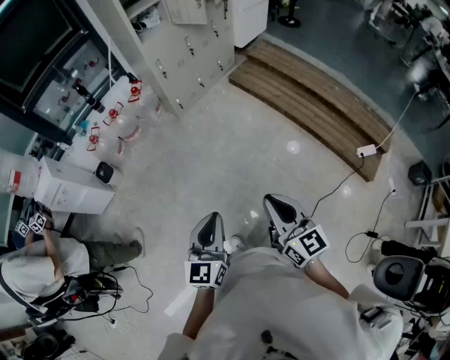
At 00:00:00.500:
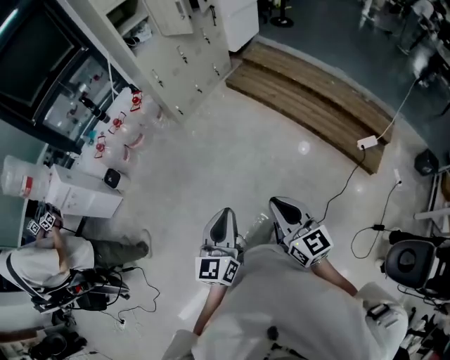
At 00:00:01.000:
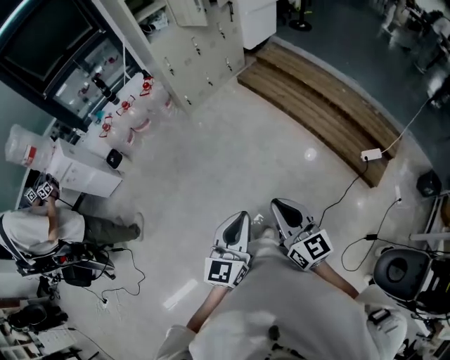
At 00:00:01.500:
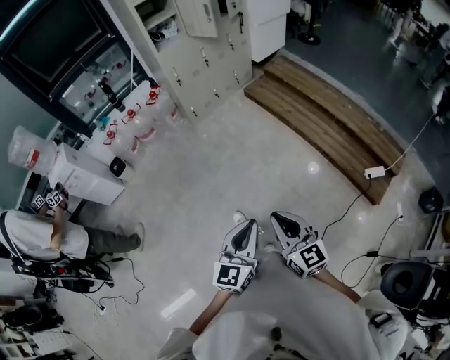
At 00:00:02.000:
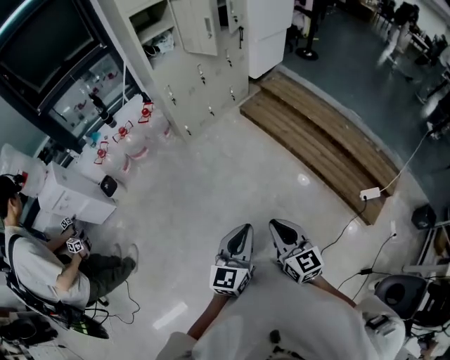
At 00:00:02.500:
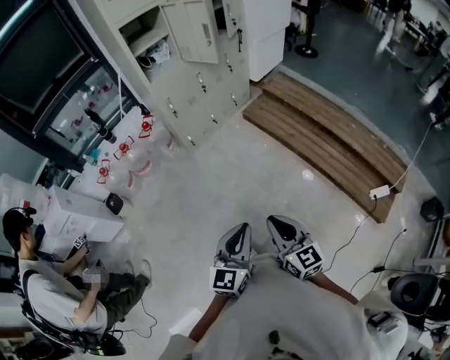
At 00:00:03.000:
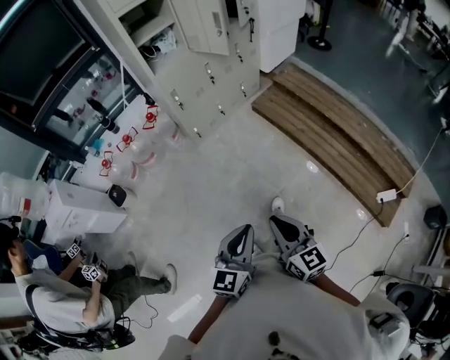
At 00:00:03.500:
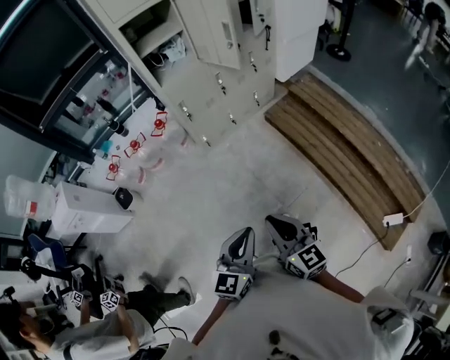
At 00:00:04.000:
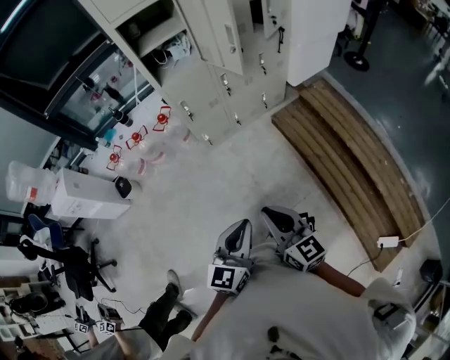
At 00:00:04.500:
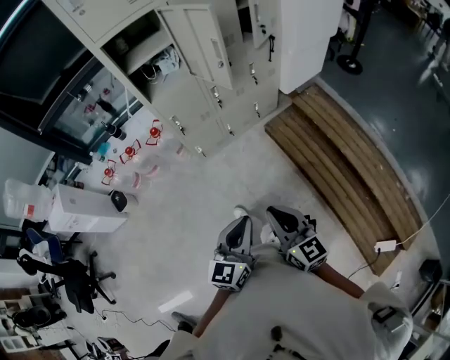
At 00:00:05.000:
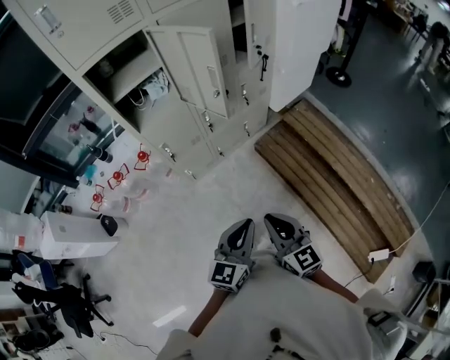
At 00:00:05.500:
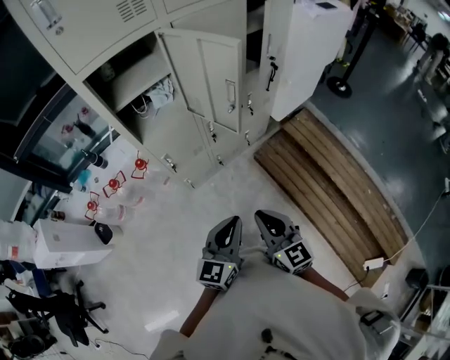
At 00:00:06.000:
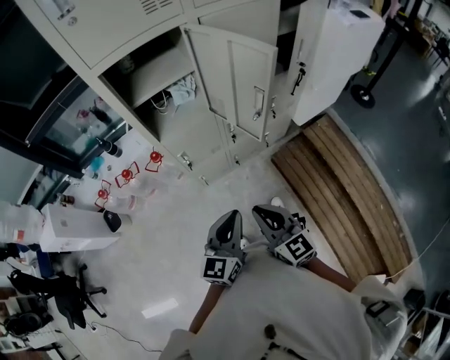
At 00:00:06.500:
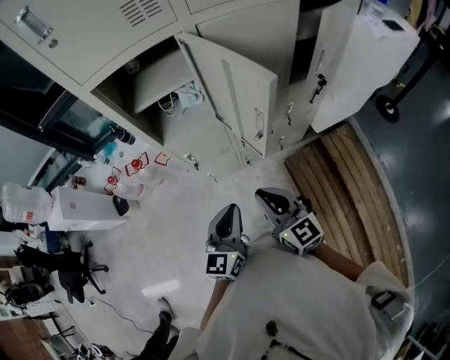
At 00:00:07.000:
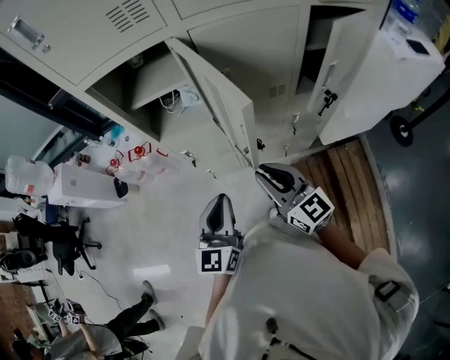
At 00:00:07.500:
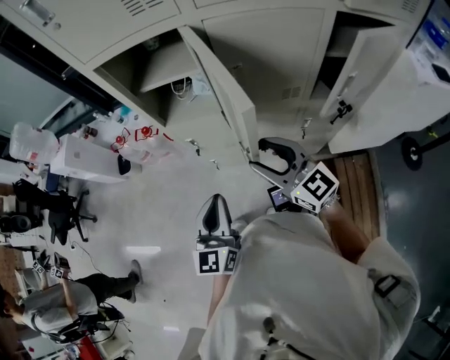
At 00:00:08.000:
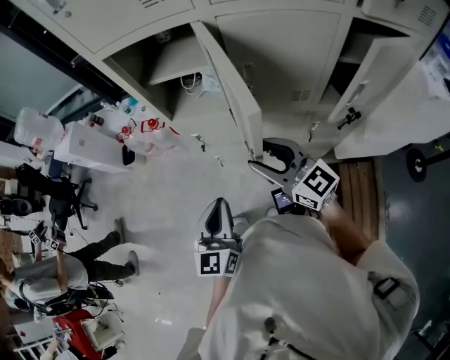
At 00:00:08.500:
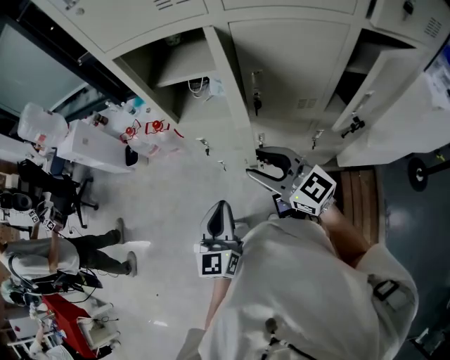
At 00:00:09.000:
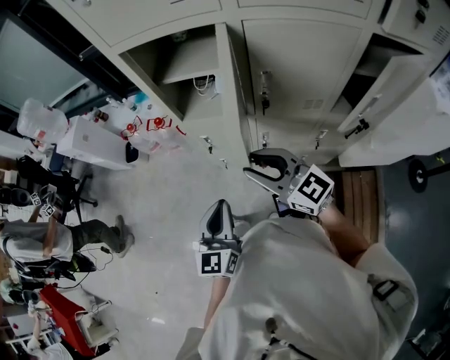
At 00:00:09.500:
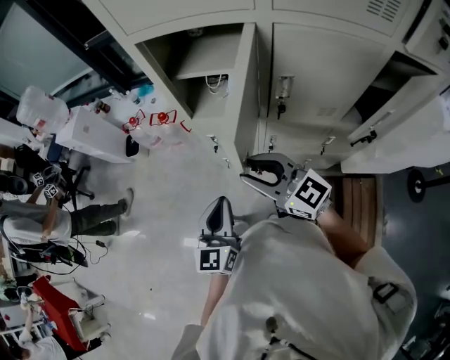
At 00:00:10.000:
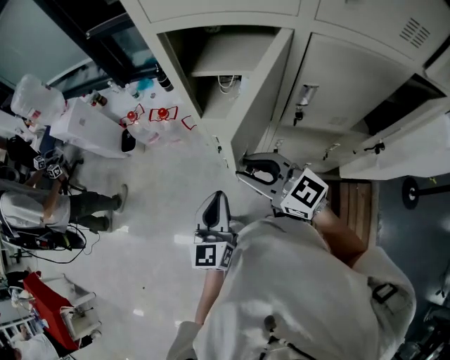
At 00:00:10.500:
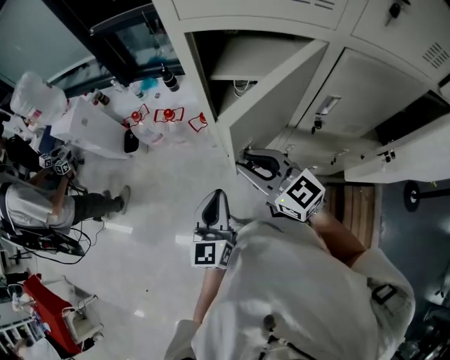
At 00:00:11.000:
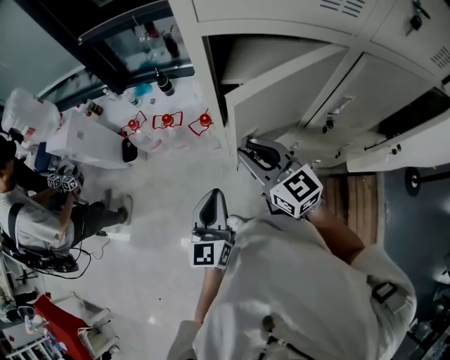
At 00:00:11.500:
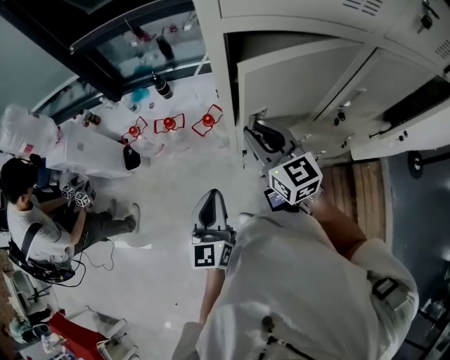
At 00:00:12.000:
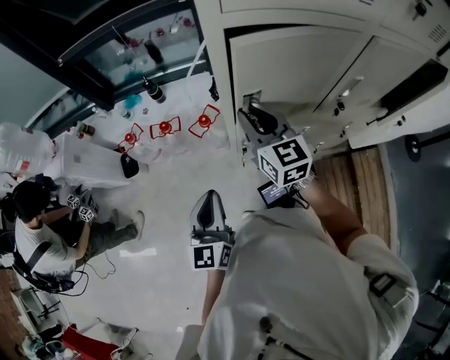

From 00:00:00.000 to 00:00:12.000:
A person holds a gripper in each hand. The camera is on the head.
From 00:00:00.000 to 00:00:02.000: The left gripper goes roughly 20 cm to the right, while the right gripper shifts some 10 cm to the right, and travels backward and back again, approximately 10 cm each way.
From 00:00:02.000 to 00:00:04.000: The two grippers go roughly 40 cm forward. The right gripper rotates roughly 20 degrees.
From 00:00:04.000 to 00:00:06.000: The two grippers go approximately 35 cm forward.
From 00:00:06.000 to 00:00:08.000: The right gripper ends up roughly 25 cm from where it was, rotates about 50 degrees, and opens. Meanwhile the left gripper shifts by about 15 cm, and swivels roughly 40 degrees.
From 00:00:08.000 to 00:00:10.000: The right gripper is displaced to the left and forward by some 15 cm, and closes its fingers, while the left gripper is displaced forward and to the left by about 10 cm.
From 00:00:10.000 to 00:00:12.000: The right gripper ends up some 25 cm from where it was, and changes its angle by roughly 50 degrees; the left gripper ends up approximately 20 cm from where it was.

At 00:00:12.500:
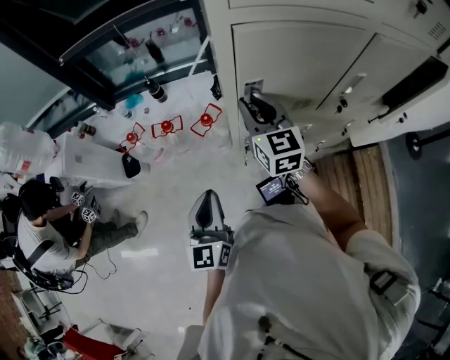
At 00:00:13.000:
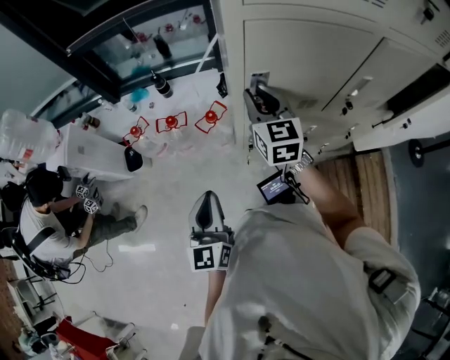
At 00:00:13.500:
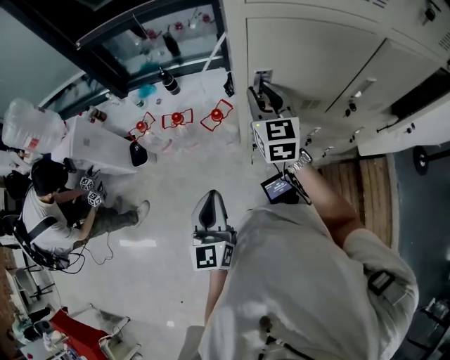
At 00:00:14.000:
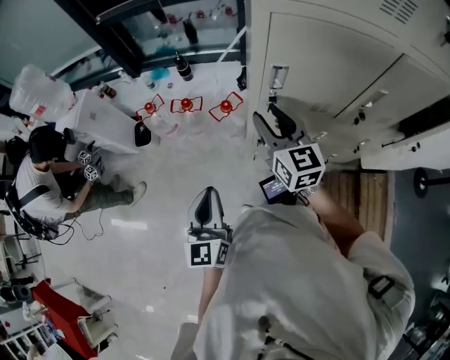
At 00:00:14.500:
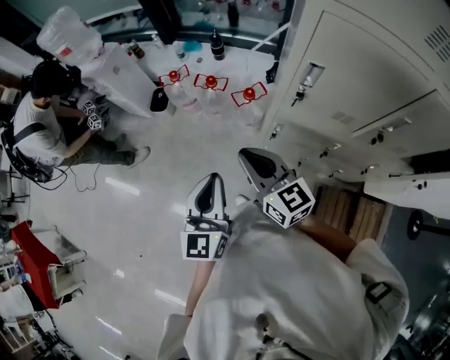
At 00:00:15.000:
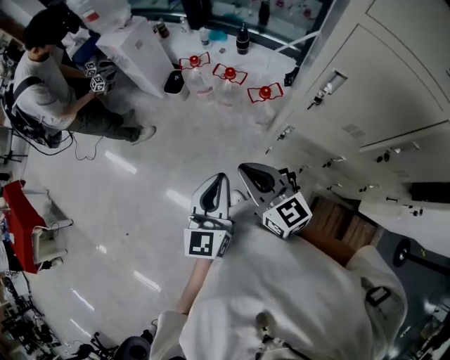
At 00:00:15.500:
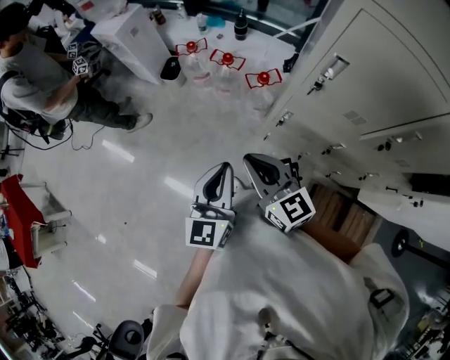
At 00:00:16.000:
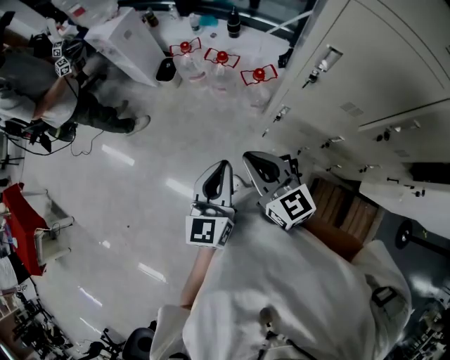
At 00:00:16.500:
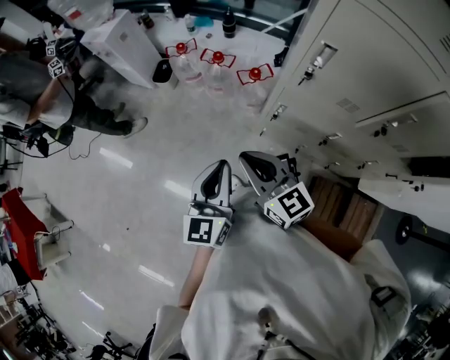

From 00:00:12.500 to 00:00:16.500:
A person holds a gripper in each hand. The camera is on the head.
From 00:00:12.500 to 00:00:14.500: The right gripper changes place by some 25 cm, changes its angle by some 40 degrees, and opens, then closes once more, while the left gripper moves some 10 cm.
From 00:00:14.500 to 00:00:16.500: The left gripper changes place by approximately 5 cm. The right gripper travels backward by roughly 5 cm.

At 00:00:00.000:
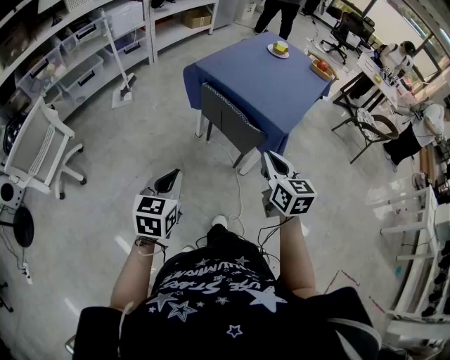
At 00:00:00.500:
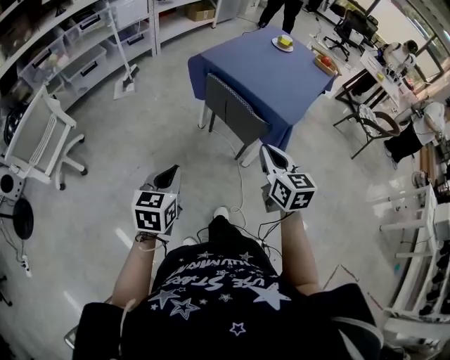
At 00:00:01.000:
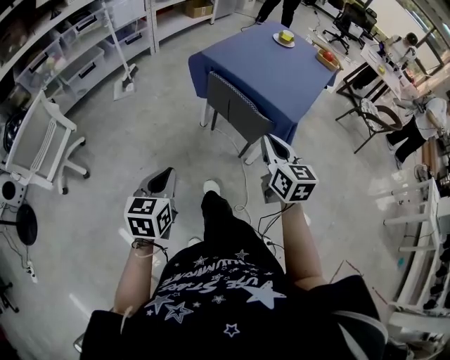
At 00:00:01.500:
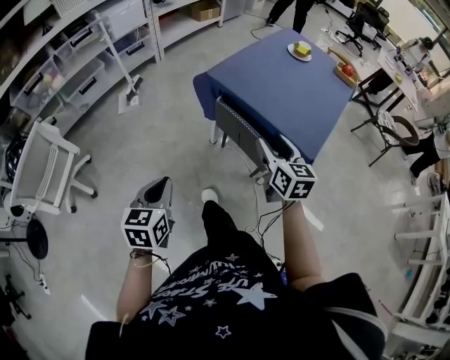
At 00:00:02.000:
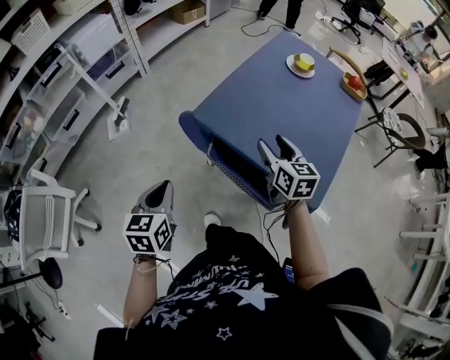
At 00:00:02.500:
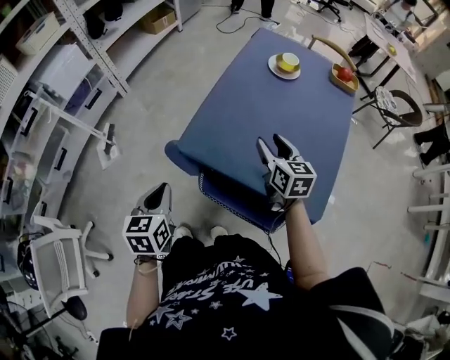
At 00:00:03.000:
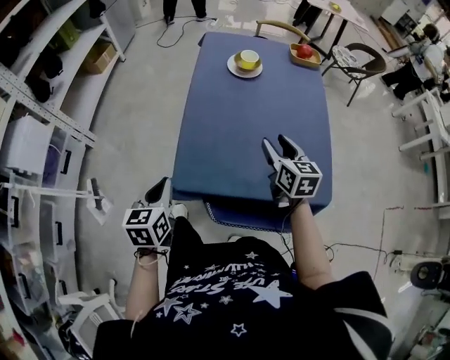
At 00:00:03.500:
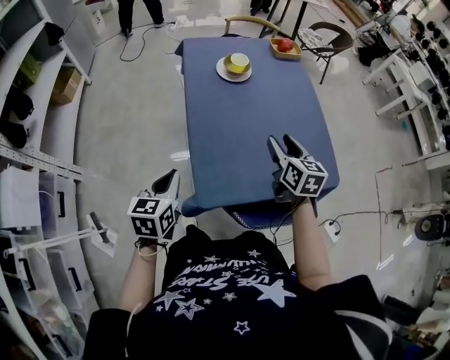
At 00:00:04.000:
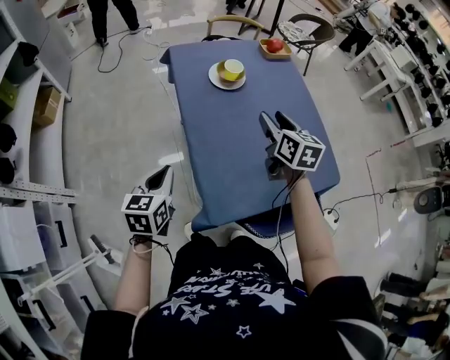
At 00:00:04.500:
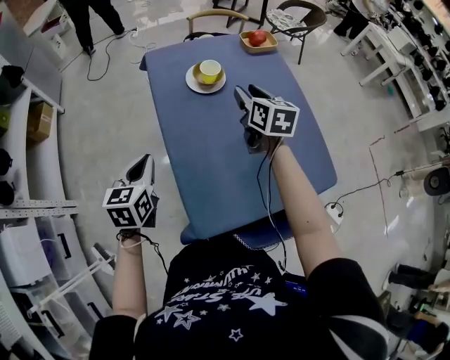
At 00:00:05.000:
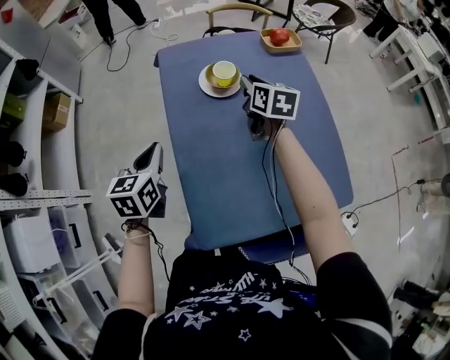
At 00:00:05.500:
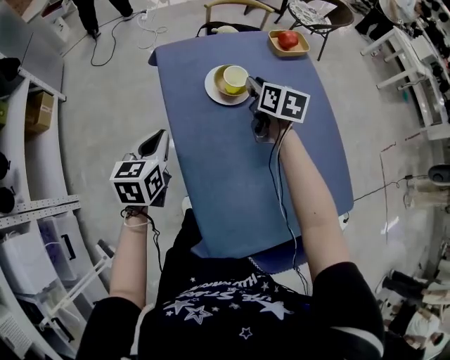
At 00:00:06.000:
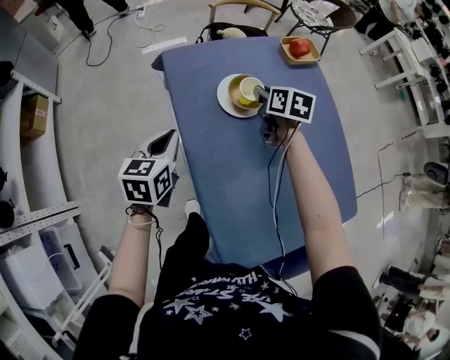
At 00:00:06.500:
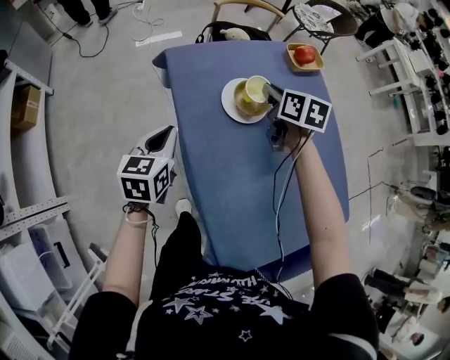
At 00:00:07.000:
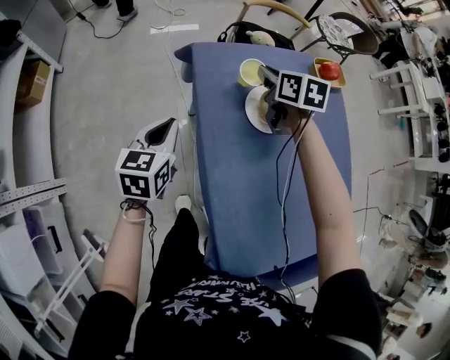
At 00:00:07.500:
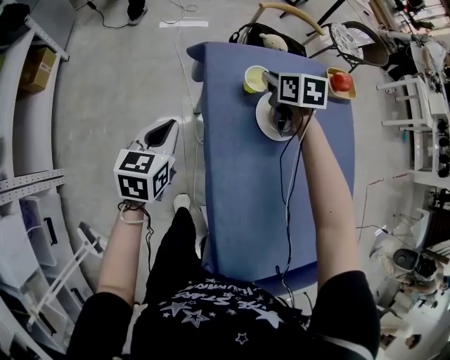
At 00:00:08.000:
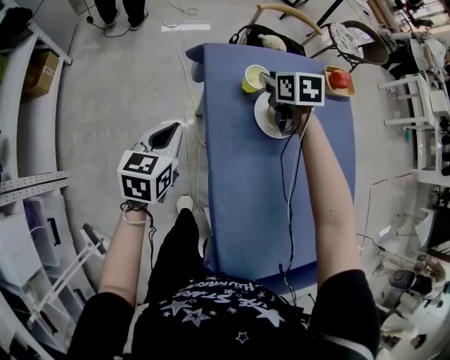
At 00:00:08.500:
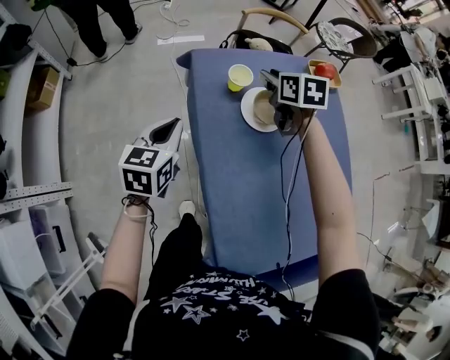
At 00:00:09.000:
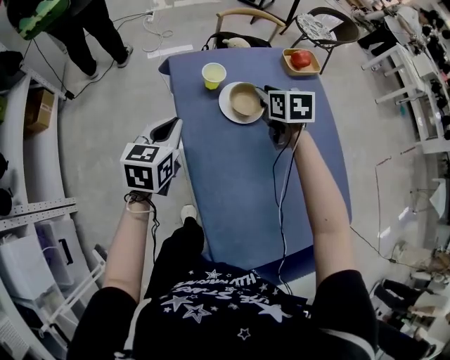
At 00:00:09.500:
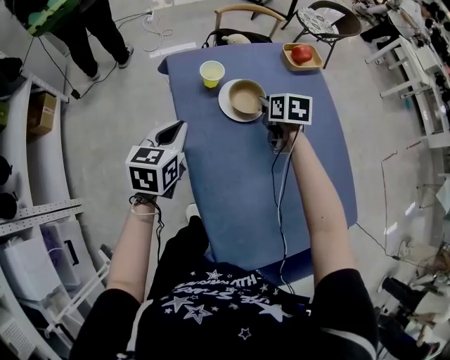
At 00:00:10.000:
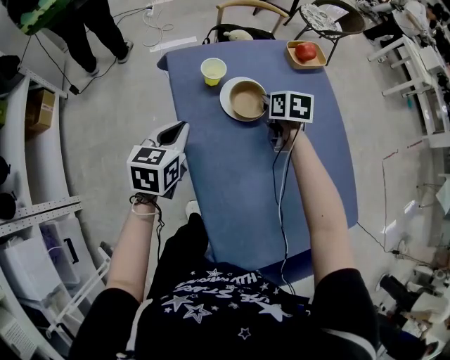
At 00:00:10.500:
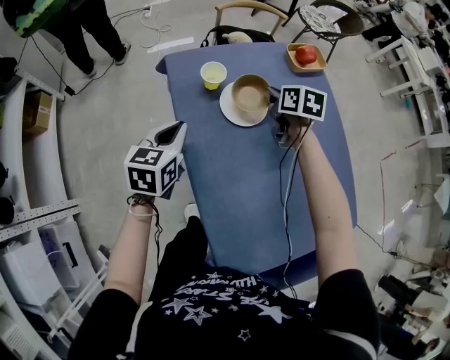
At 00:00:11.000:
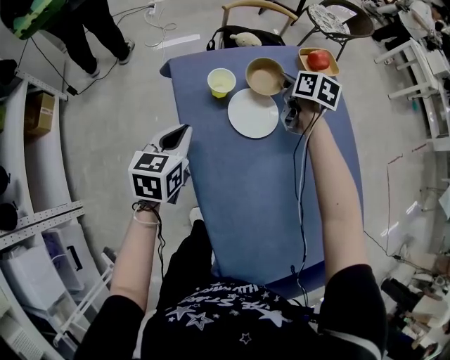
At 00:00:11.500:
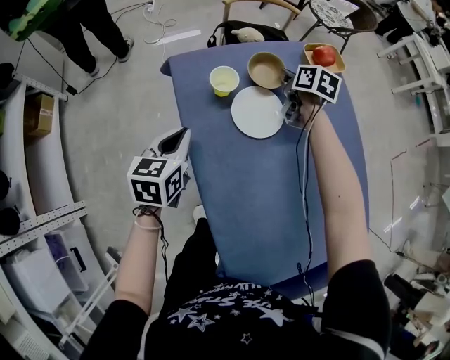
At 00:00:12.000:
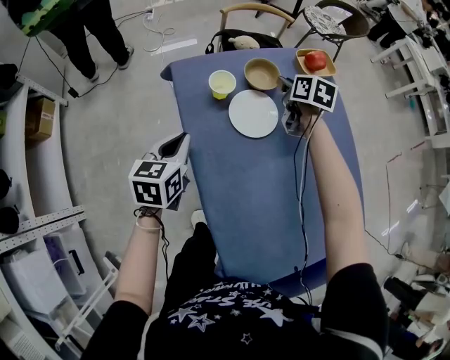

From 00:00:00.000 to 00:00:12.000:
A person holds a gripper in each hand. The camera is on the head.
From 00:00:00.000 to 00:00:02.000: Both grippers travel together forward, some 40 cm. The right gripper opens.
From 00:00:02.000 to 00:00:04.000: The right gripper moves approximately 30 cm, and swivels about 60 degrees; the left gripper shifts by some 50 cm, and rotates approximately 60 degrees.
From 00:00:04.000 to 00:00:06.000: The right gripper heads forward and downward, covering approximately 30 cm, changes its angle by roughly 20 degrees, and closes, while the left gripper is displaced forward by about 30 cm.
From 00:00:06.000 to 00:00:08.000: The left gripper moves to the left, roughly 10 cm. The right gripper travels to the left and forward by roughly 15 cm, and changes its angle by roughly 30 degrees.
From 00:00:08.000 to 00:00:10.000: The left gripper goes roughly 10 cm to the right. Meanwhile the right gripper goes about 15 cm to the right and backward, and closes its fingers.
From 00:00:10.000 to 00:00:12.000: The right gripper travels forward by about 10 cm.
